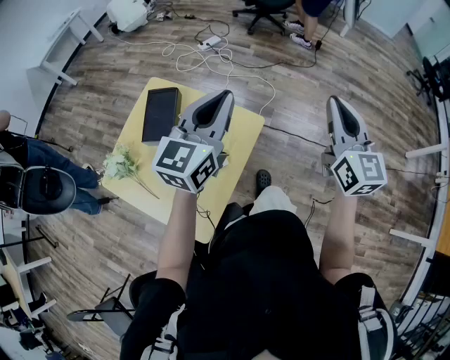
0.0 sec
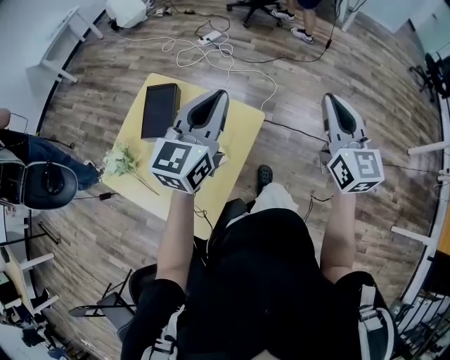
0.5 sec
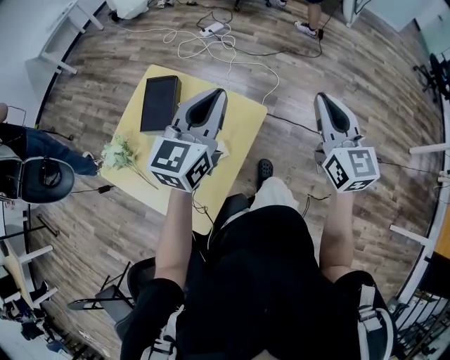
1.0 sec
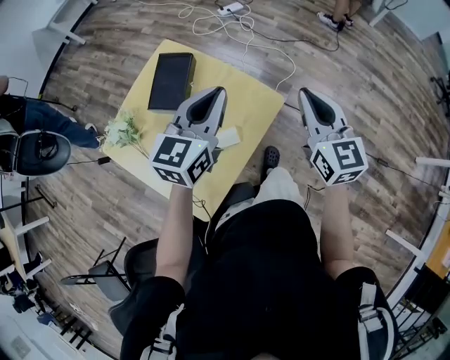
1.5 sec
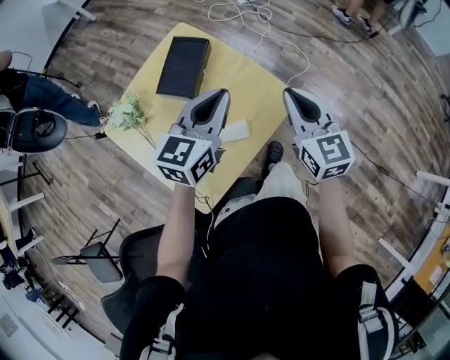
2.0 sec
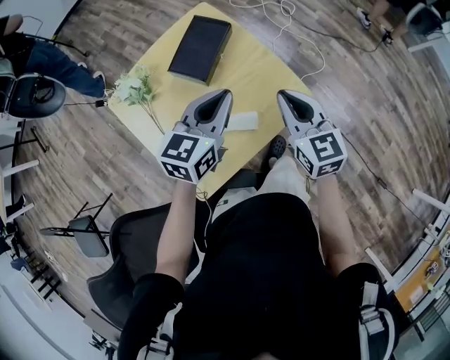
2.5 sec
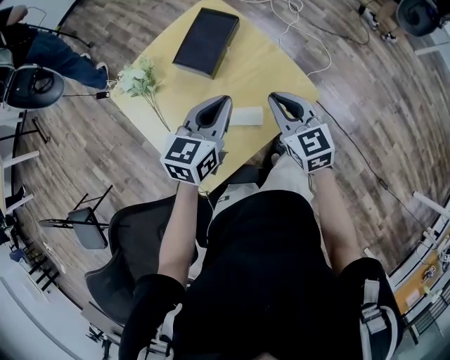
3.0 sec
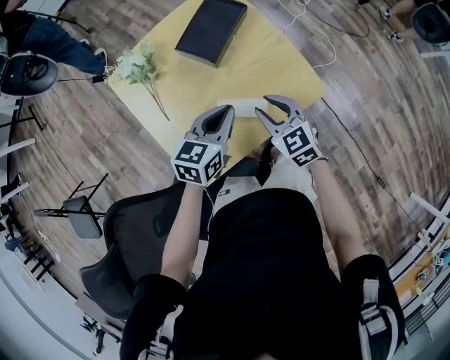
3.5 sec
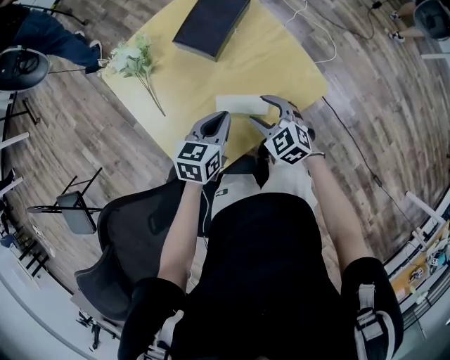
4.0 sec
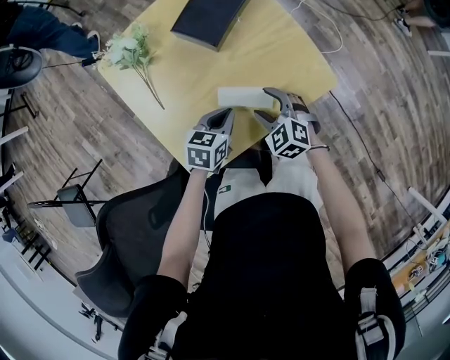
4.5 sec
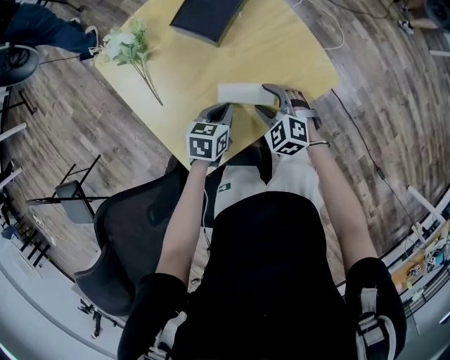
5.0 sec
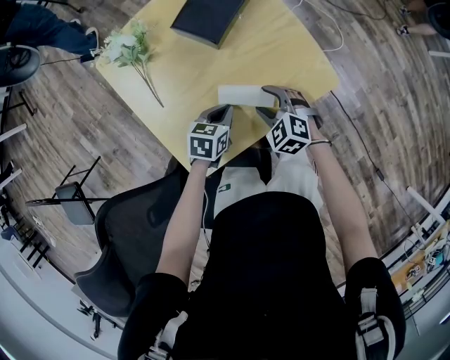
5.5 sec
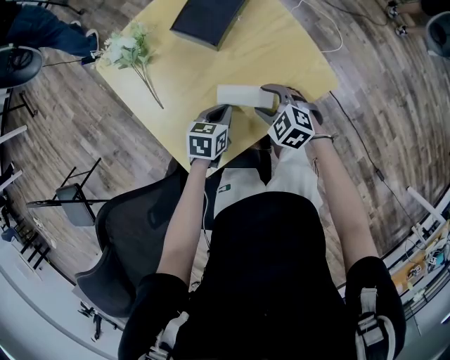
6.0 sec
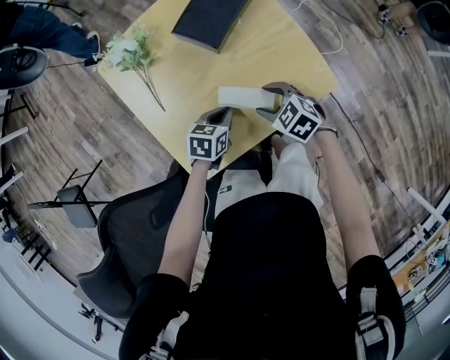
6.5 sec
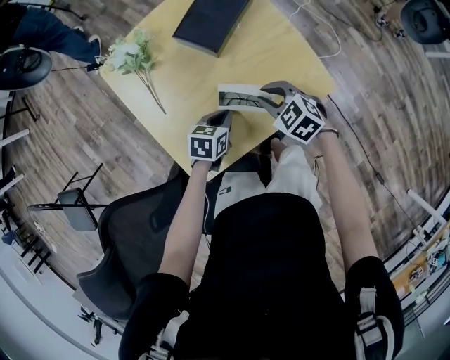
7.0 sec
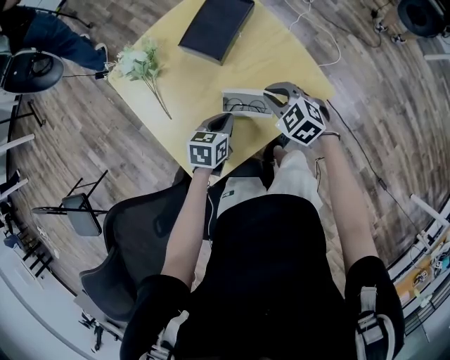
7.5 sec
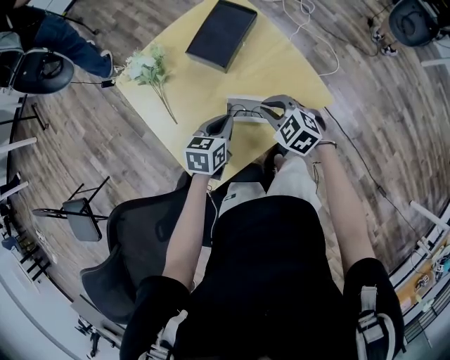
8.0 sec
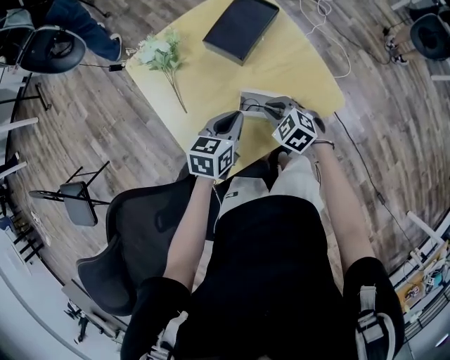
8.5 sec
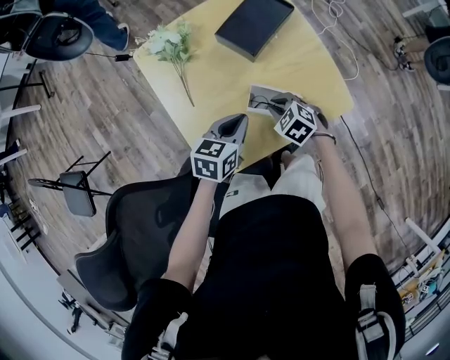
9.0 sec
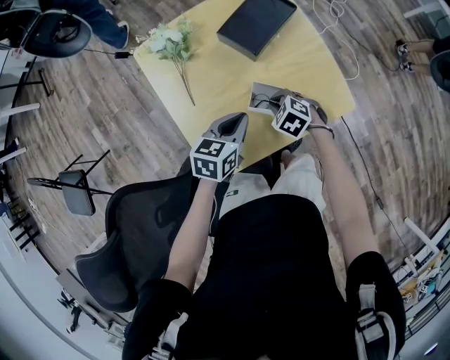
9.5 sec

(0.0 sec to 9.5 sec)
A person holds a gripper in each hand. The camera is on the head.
0.0 sec - 2.0 sec: The right gripper shifts some 25 cm to the left and downward, and swivels about 30 degrees. The left gripper goes about 15 cm downward and to the left, and turns by some 20 degrees.
2.0 sec - 4.0 sec: The grippers both shift downward and to the left by approximately 25 cm. The right gripper turns by about 50 degrees, and opens its fingers; the left gripper turns by roughly 30 degrees.
4.0 sec - 5.5 sec: The right gripper travels downward by roughly 5 cm. The left gripper shifts about 10 cm downward.
5.5 sec - 7.5 sec: The right gripper travels upward by approximately 5 cm, and closes.
7.5 sec - 9.5 sec: The right gripper travels downward and to the left by roughly 10 cm, and rotates some 20 degrees; the left gripper shifts some 5 cm upward.

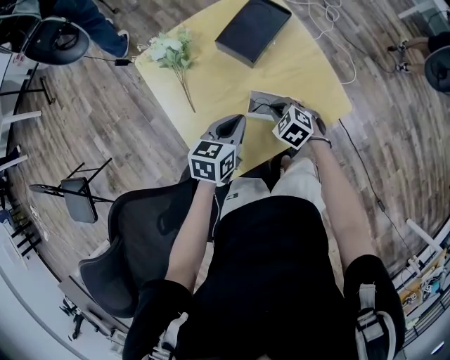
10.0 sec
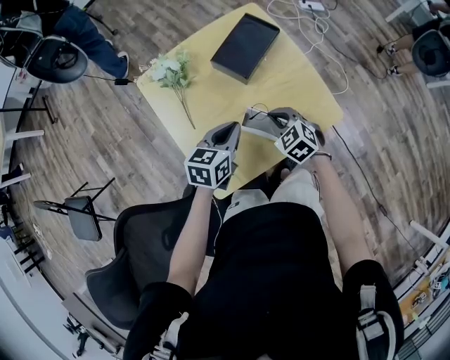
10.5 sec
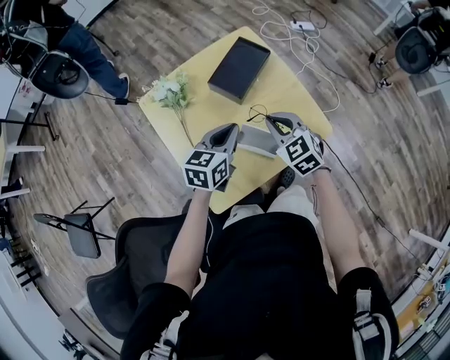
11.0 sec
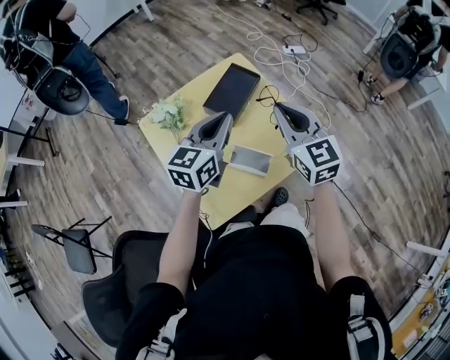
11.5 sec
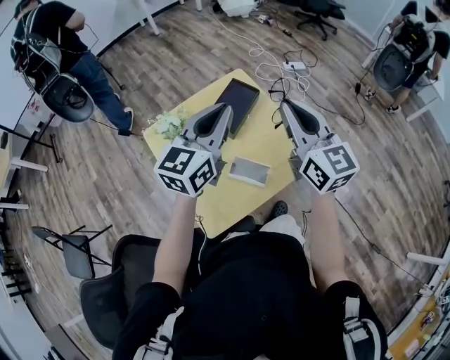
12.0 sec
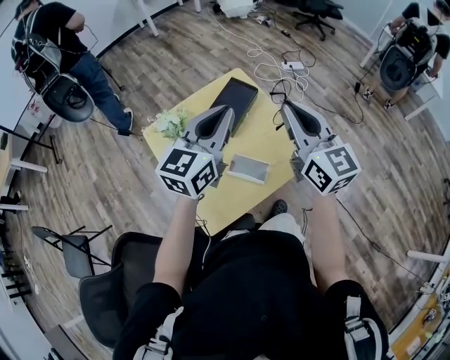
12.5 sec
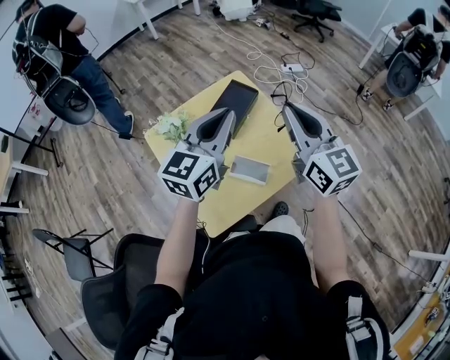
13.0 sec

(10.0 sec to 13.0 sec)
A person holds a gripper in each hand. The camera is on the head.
10.0 sec - 11.5 sec: The left gripper heads upward, covering about 20 cm, and turns by some 30 degrees; the right gripper is displaced upward by about 35 cm, and points its fingers some 50 degrees further upward.
11.5 sec - 13.0 sec: Both grippers travel together upward, about 10 cm.

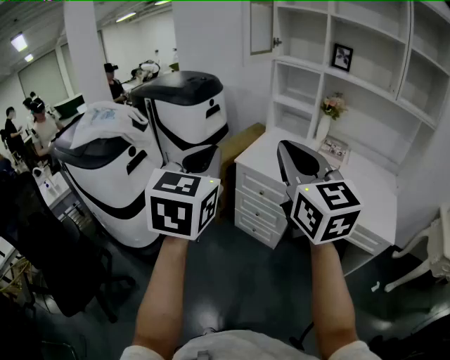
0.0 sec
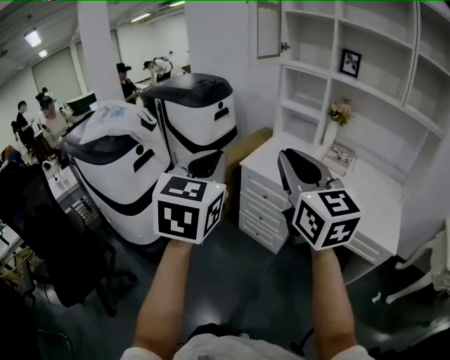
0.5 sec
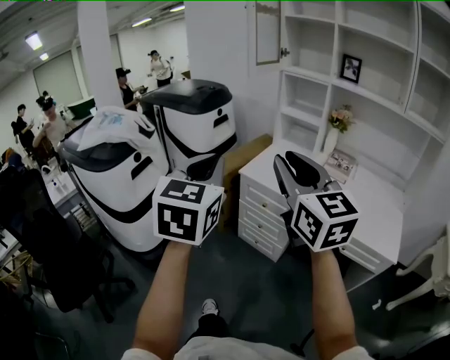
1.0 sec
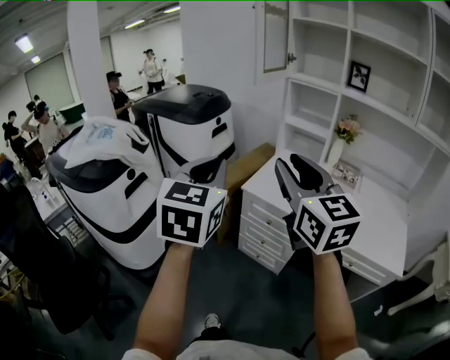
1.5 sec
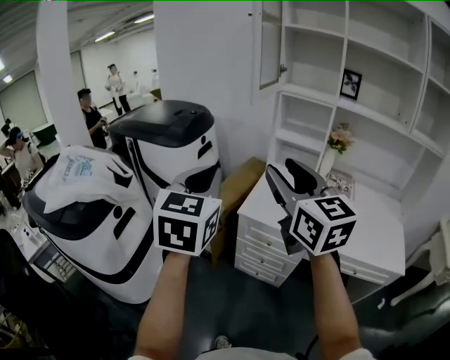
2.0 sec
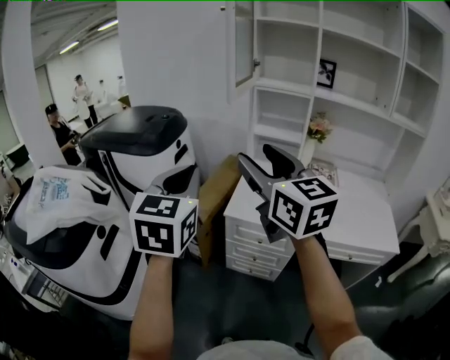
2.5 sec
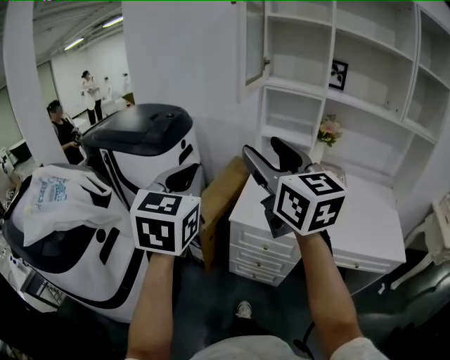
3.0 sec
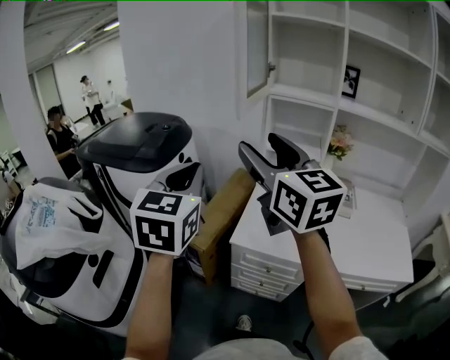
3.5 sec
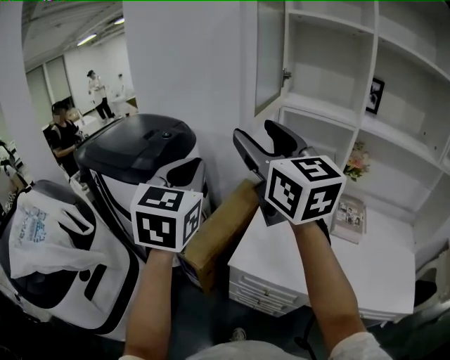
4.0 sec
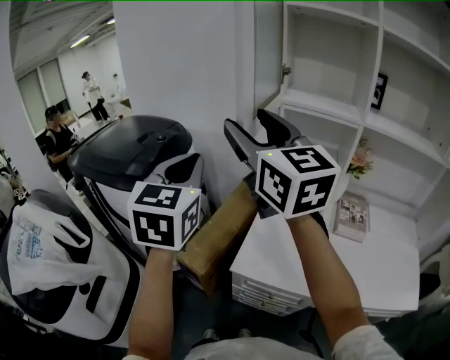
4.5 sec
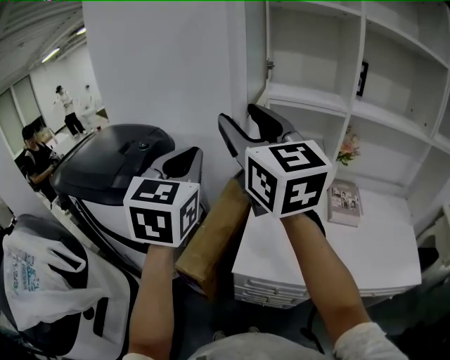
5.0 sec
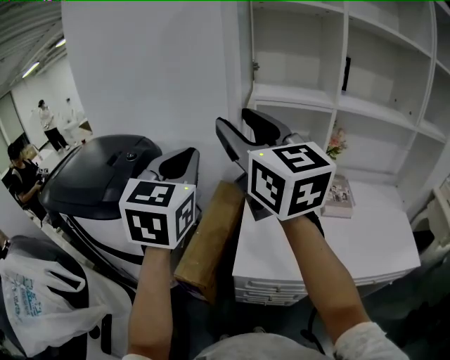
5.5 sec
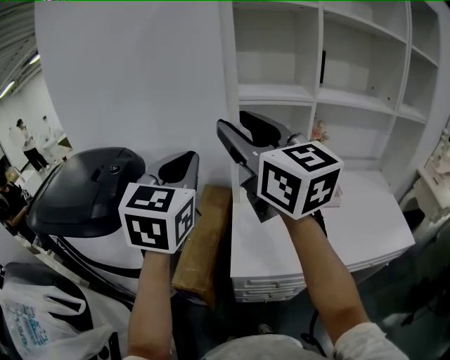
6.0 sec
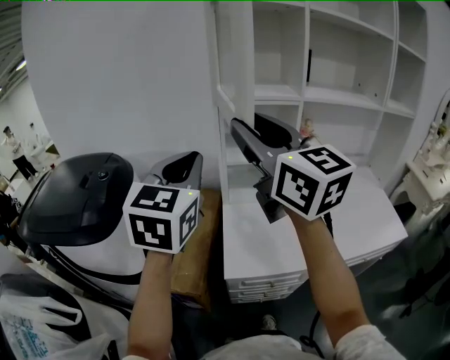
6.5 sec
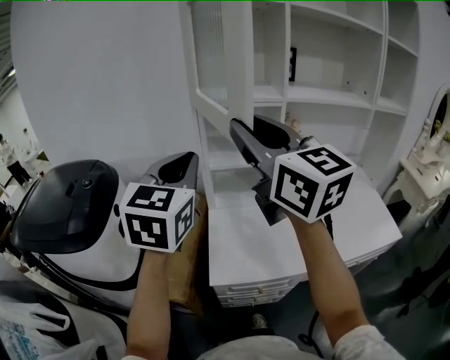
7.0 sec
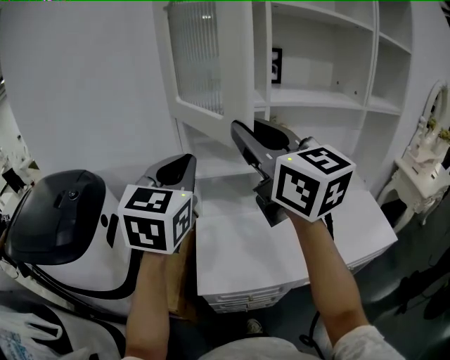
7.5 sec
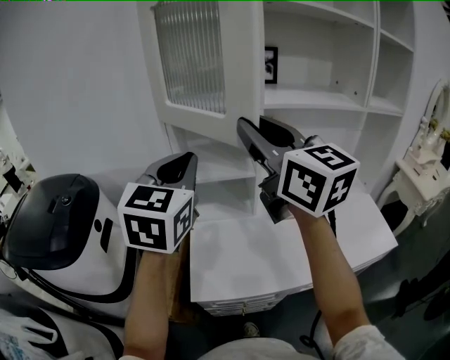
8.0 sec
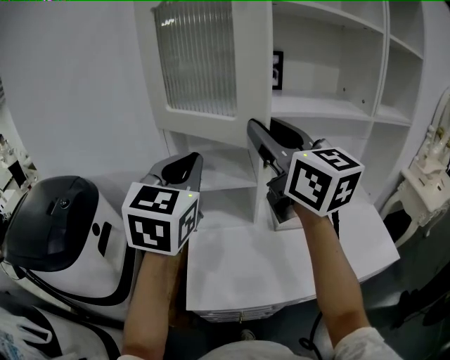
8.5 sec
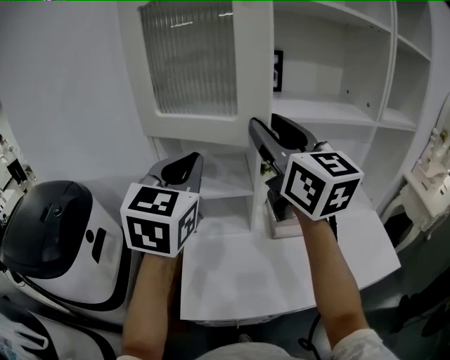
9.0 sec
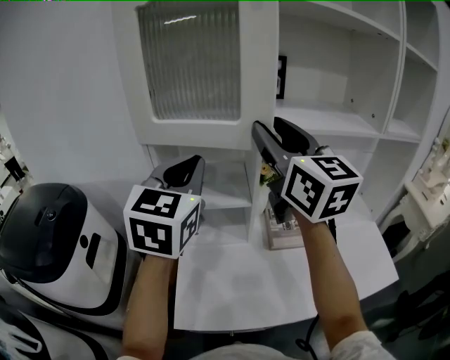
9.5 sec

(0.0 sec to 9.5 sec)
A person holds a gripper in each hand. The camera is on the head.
0.0 sec - 2.0 sec: The two grippers go about 25 cm forward. The right gripper opens.
2.0 sec - 4.0 sec: Both grippers move forward, roughly 30 cm.
4.0 sec - 5.5 sec: The right gripper moves forward, some 5 cm; the left gripper moves forward, about 10 cm.
5.5 sec - 7.5 sec: Both grippers travel together to the right, approximately 15 cm. The right gripper closes its fingers.
7.5 sec - 9.5 sec: The grippers both shift forward and to the right by some 20 cm. The right gripper opens.

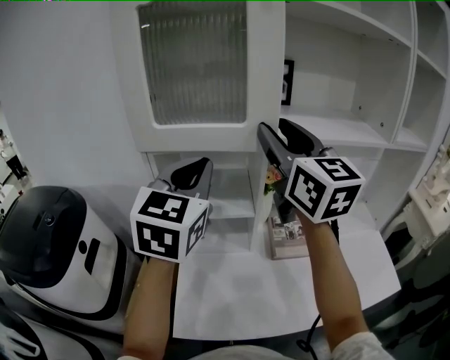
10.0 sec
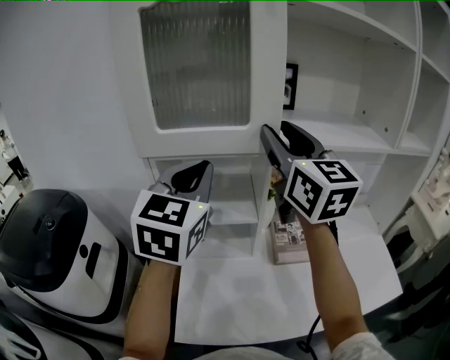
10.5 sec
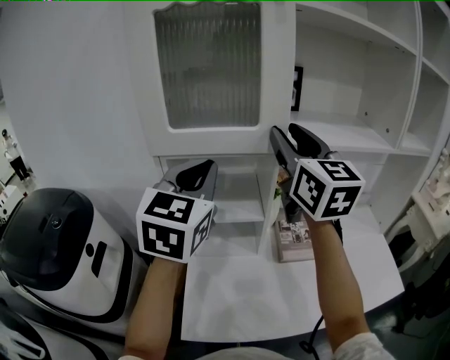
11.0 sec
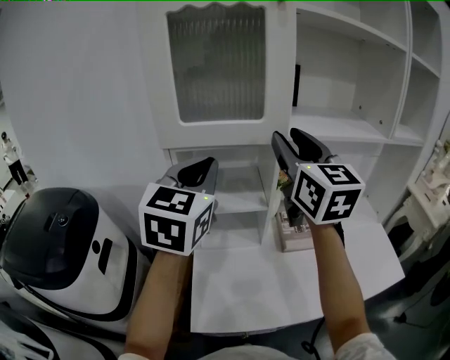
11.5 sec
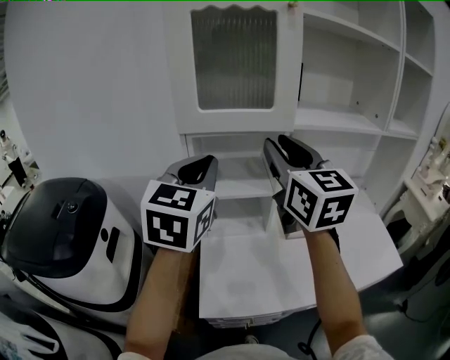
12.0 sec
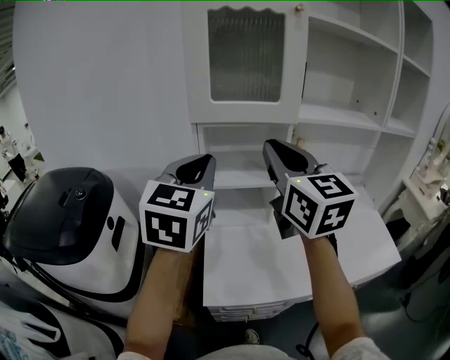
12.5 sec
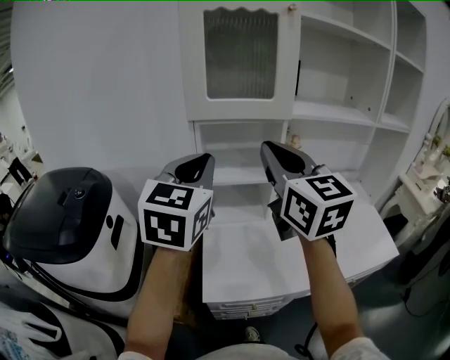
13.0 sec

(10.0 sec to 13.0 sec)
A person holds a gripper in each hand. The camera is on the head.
10.0 sec - 11.5 sec: There are only small adjustments of the grippers.
11.5 sec - 13.0 sec: The two grippers go about 15 cm backward and to the left. The right gripper closes its fingers.

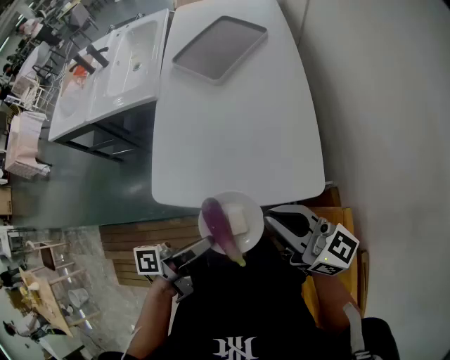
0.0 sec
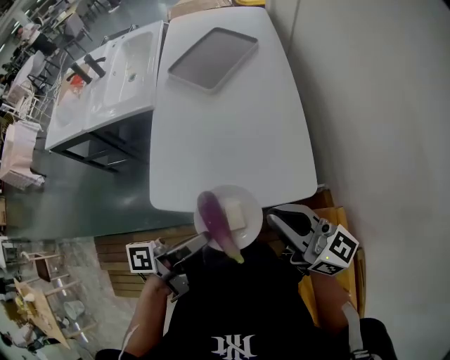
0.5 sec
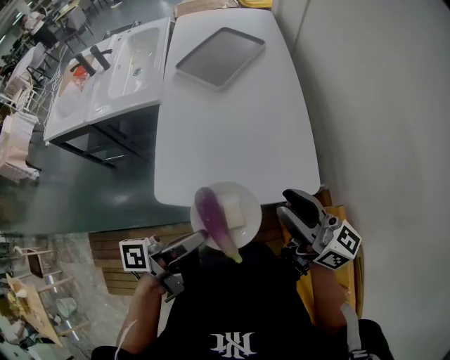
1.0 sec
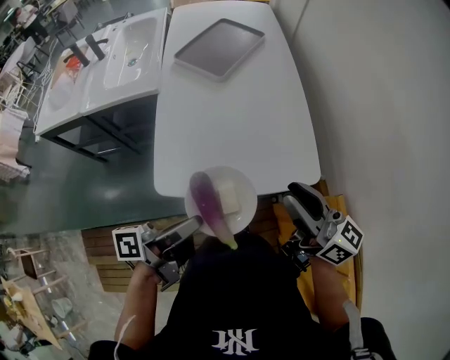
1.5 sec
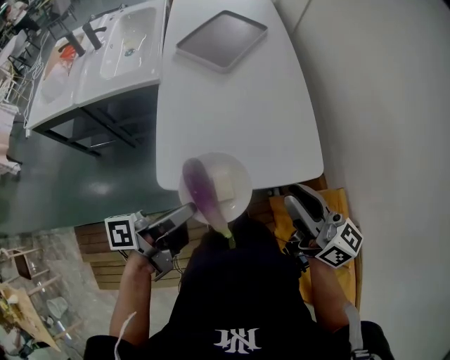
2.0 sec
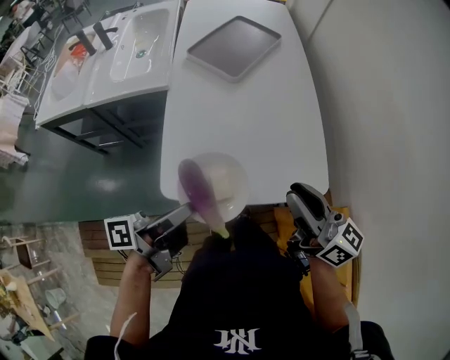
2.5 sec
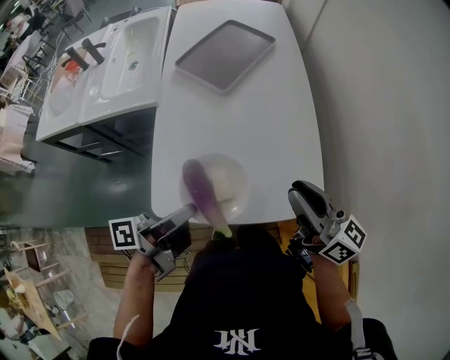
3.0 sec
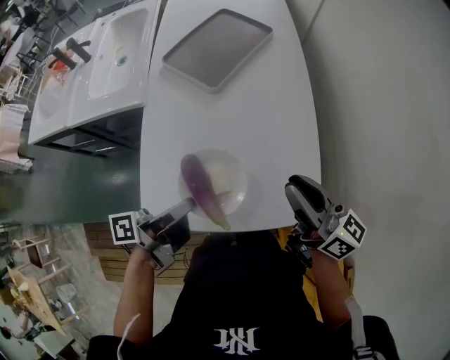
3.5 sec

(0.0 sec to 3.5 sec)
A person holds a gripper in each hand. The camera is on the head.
0.0 sec - 2.0 sec: The right gripper ends up approximately 5 cm from where it was.
2.0 sec - 3.5 sec: The right gripper moves approximately 20 cm.
